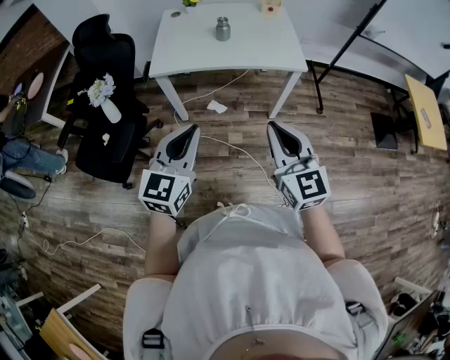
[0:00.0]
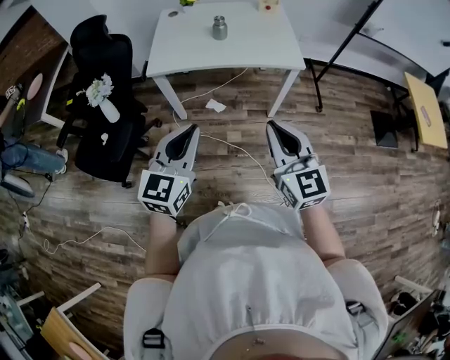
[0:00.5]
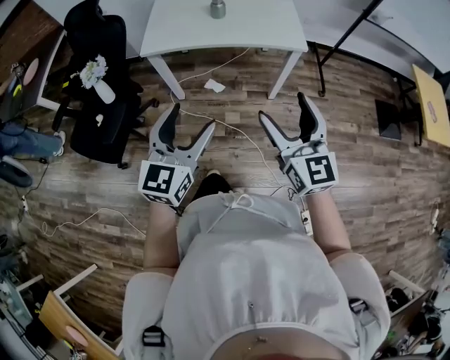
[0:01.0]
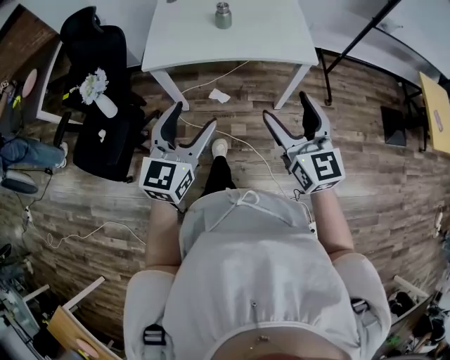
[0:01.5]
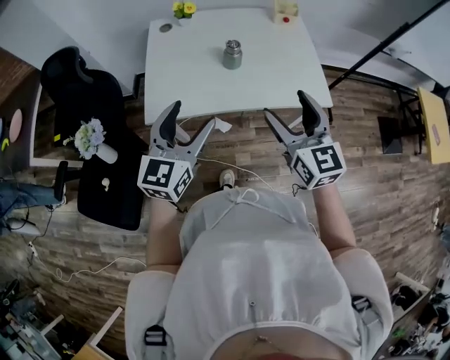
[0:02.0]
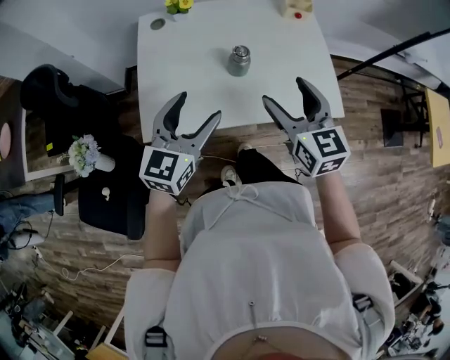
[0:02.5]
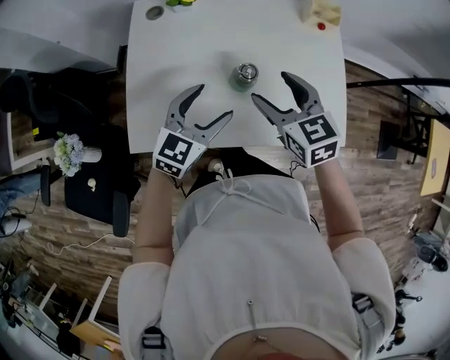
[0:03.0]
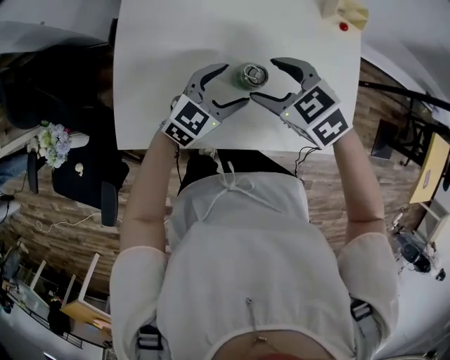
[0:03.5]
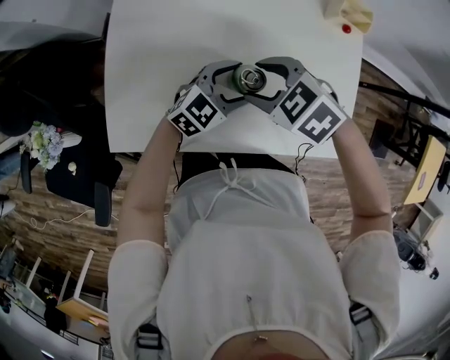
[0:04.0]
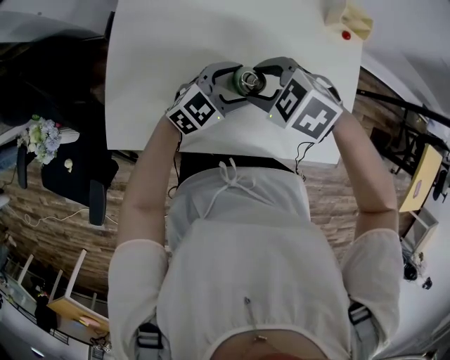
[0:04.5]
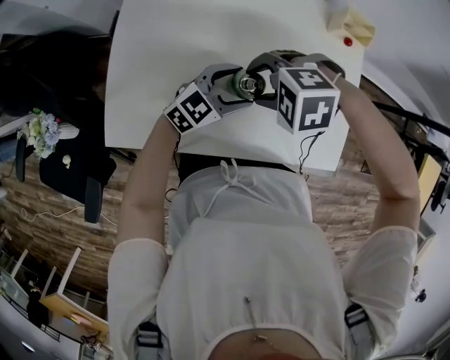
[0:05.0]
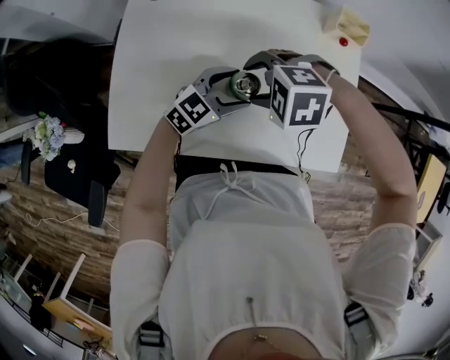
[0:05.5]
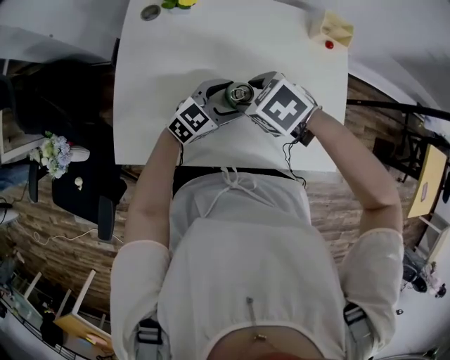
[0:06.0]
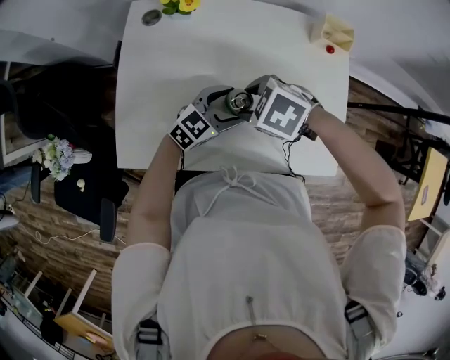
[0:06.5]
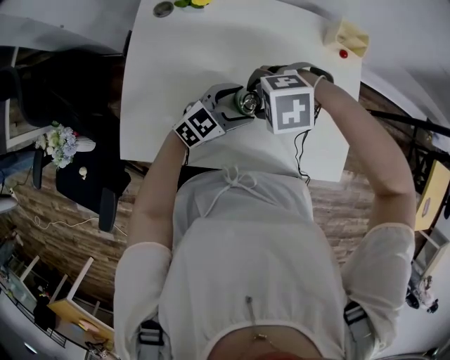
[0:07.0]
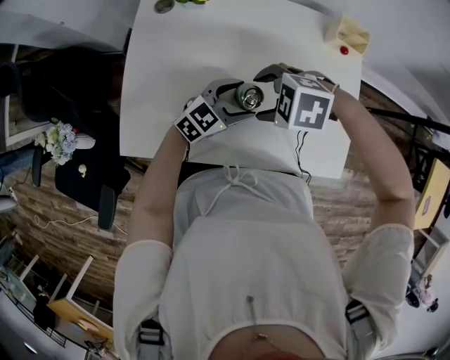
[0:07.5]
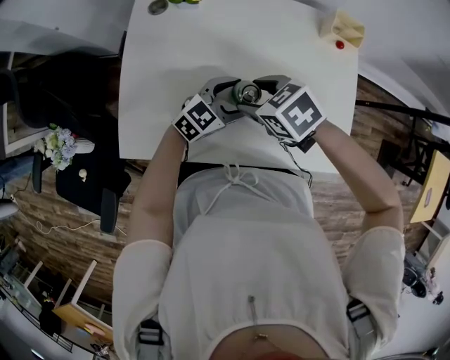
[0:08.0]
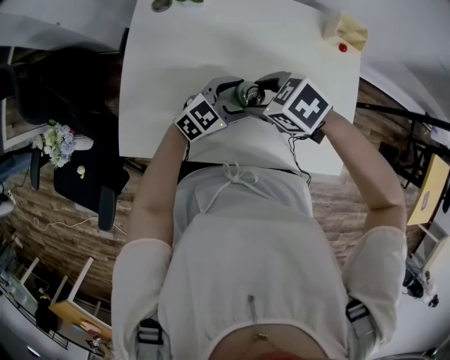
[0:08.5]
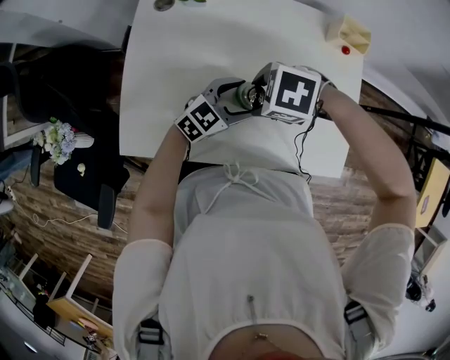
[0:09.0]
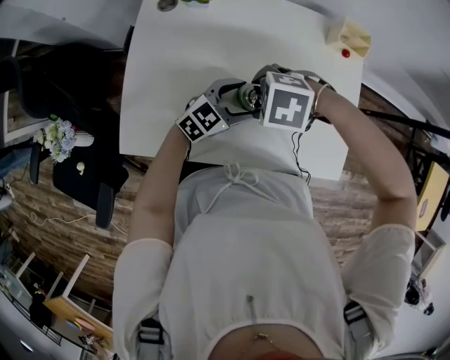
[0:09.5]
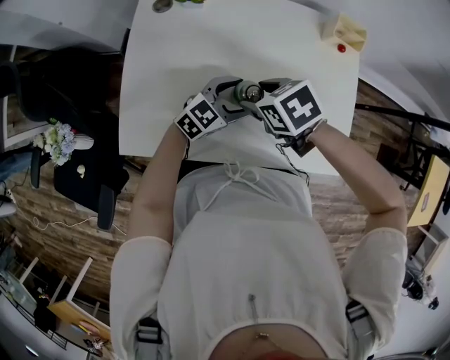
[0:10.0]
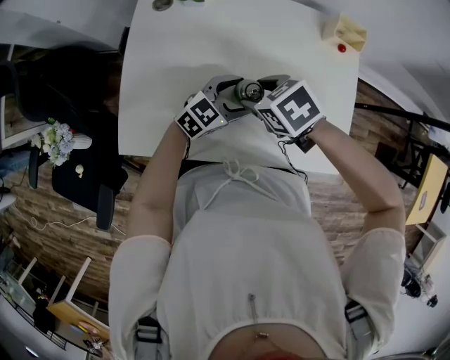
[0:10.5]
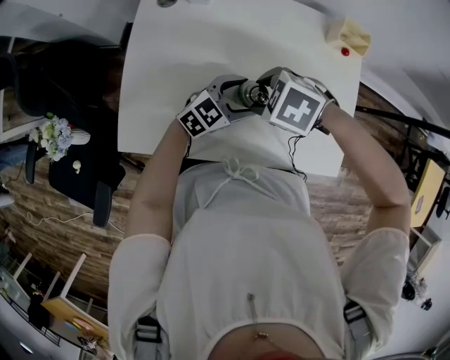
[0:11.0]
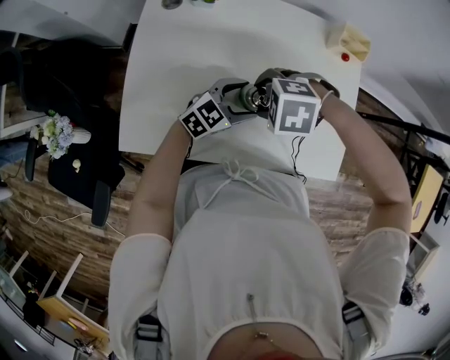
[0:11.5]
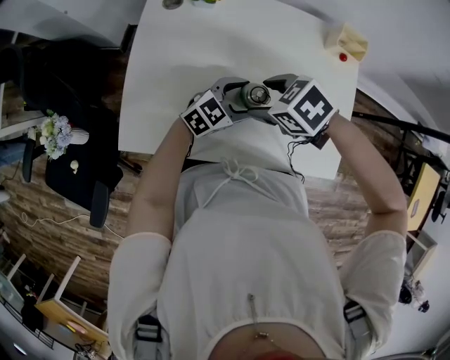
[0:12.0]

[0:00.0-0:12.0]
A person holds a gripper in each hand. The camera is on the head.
0:00.0 to 0:02.0: The two grippers go about 35 cm forward. The right gripper opens its fingers. The left gripper opens up.
0:02.0 to 0:04.0: The right gripper ends up roughly 40 cm from where it was, and tilts its fingers approximately 50 degrees downward. The left gripper moves about 40 cm, and rotates approximately 30 degrees.

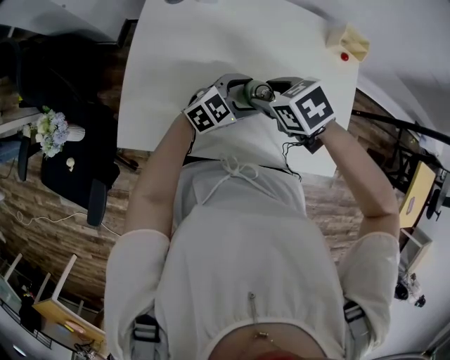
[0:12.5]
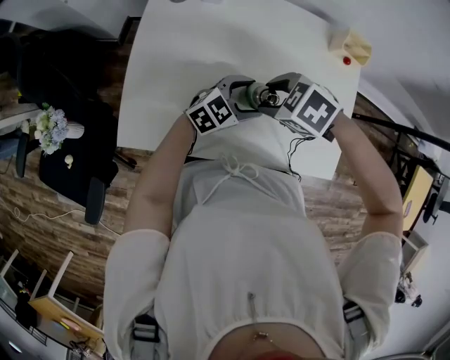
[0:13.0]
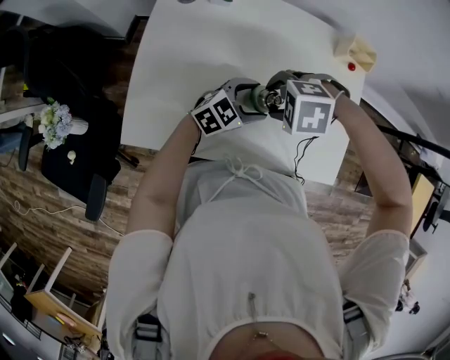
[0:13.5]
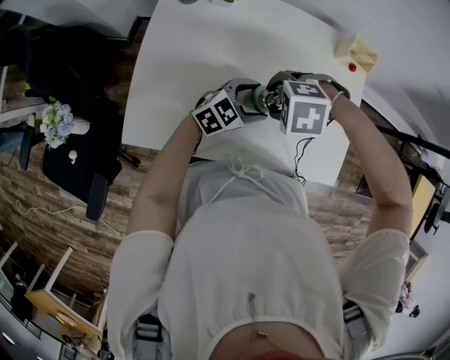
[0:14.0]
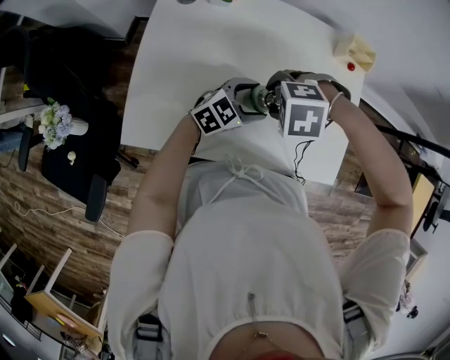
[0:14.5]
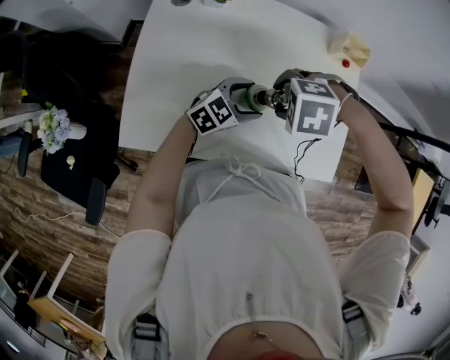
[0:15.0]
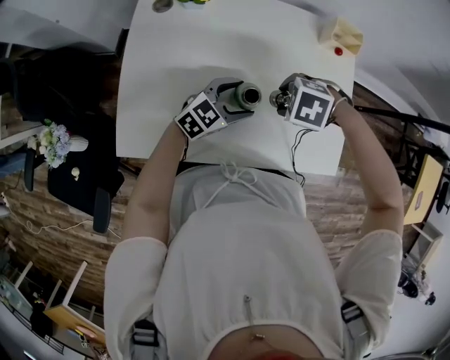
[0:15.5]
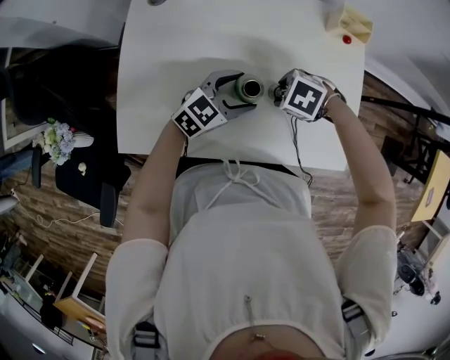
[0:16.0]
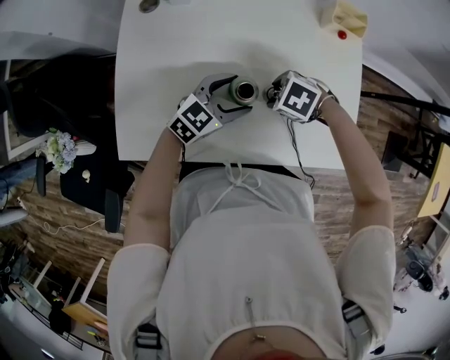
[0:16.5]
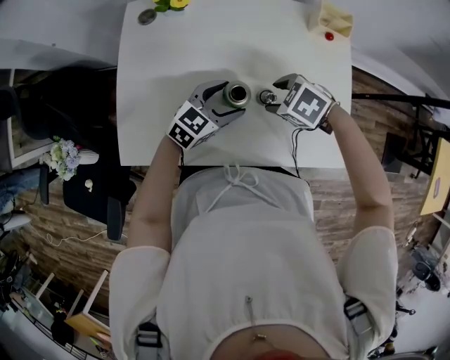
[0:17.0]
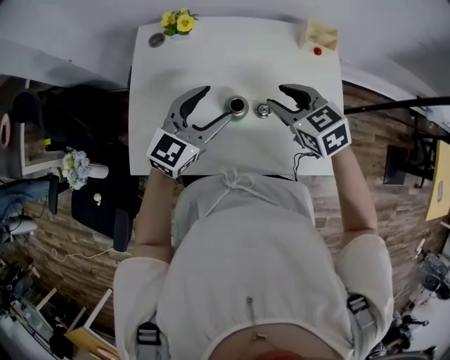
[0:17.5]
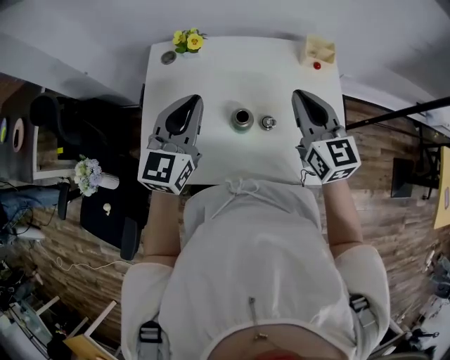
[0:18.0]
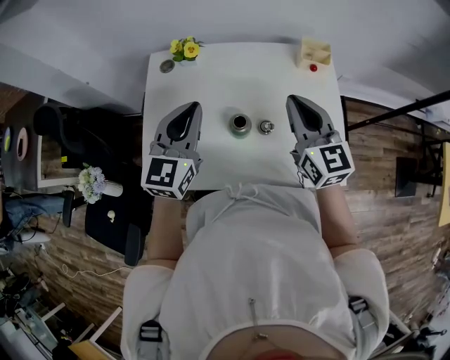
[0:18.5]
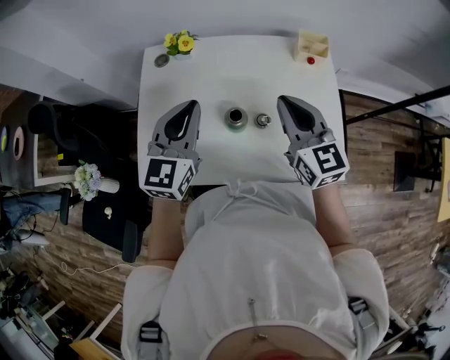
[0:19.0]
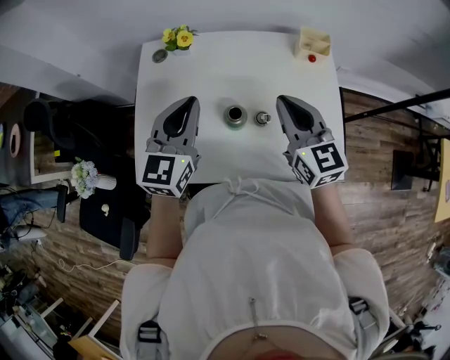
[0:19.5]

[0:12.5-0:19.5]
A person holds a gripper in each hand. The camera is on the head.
0:12.5 to 0:14.5: The right gripper rolls counterclockwise, seen from behind, by approximately 50 degrees.
0:14.5 to 0:16.0: The right gripper ends up about 15 cm from where it was, and swivels some 30 degrees.
0:16.0 to 0:17.5: Both grippers travel together upward, some 15 cm. The right gripper tips its fingers upward by roughly 40 degrees. The left gripper turns by approximately 20 degrees.
0:17.5 to 0:19.5: The grippers both shift upward by approximately 10 cm. The right gripper swivels some 30 degrees, and closes up. The left gripper turns by approximately 20 degrees, and closes.

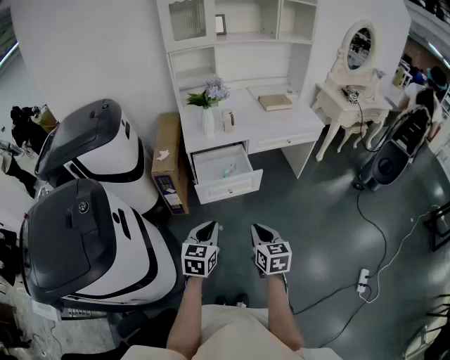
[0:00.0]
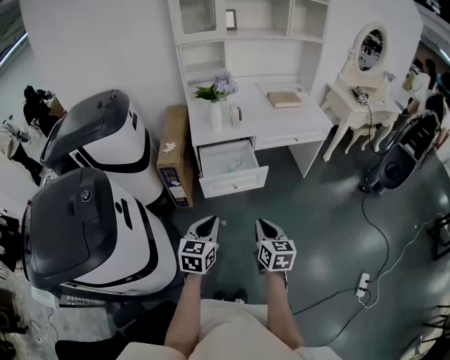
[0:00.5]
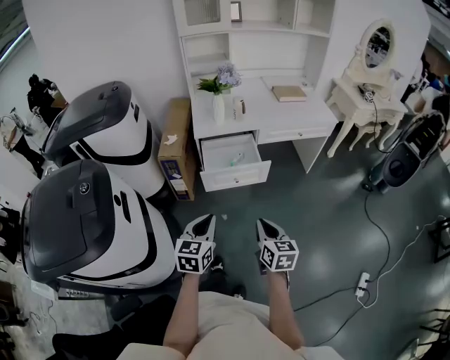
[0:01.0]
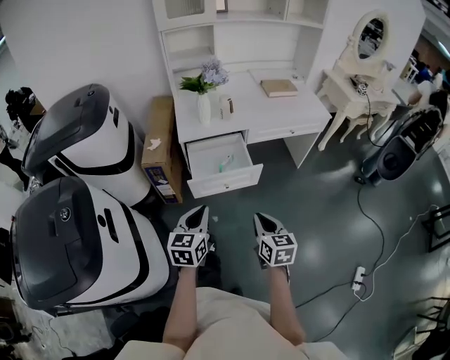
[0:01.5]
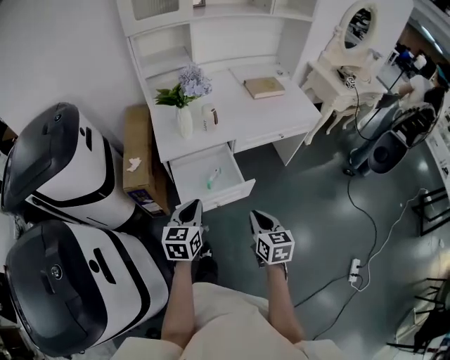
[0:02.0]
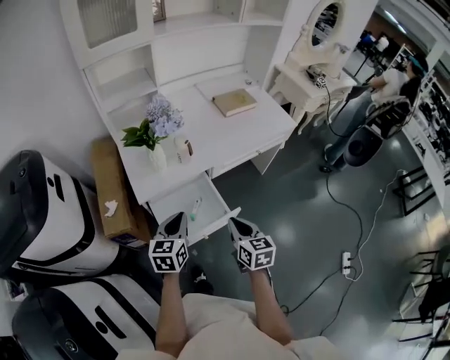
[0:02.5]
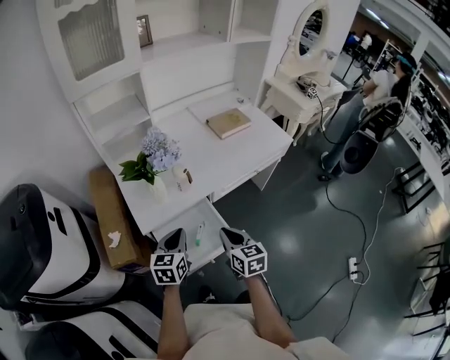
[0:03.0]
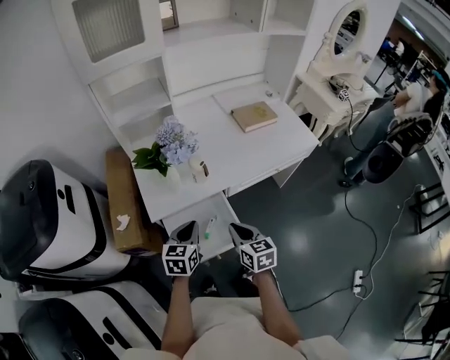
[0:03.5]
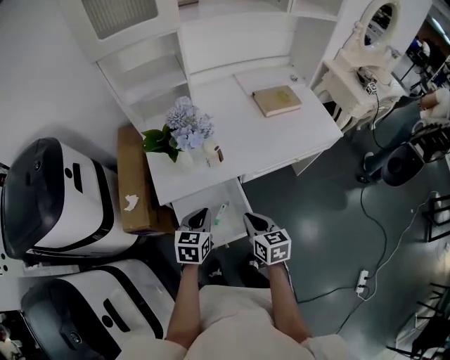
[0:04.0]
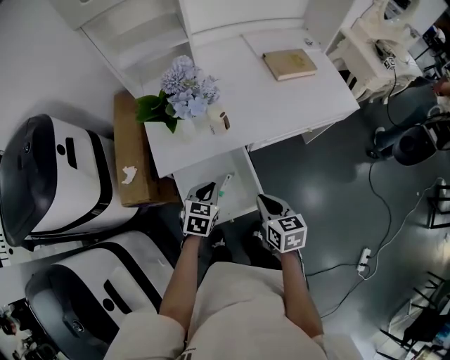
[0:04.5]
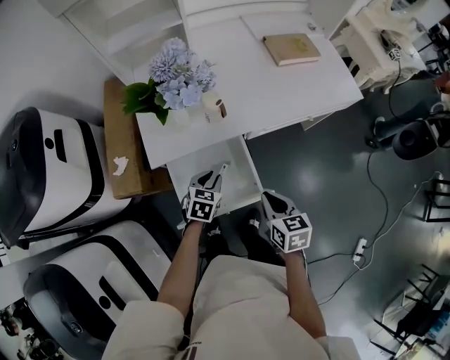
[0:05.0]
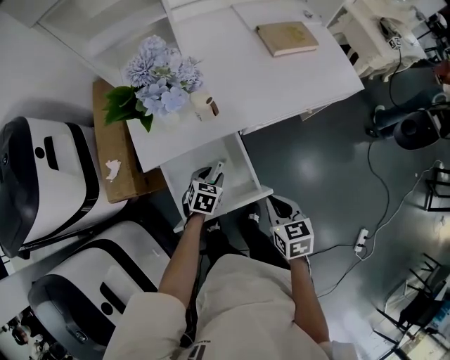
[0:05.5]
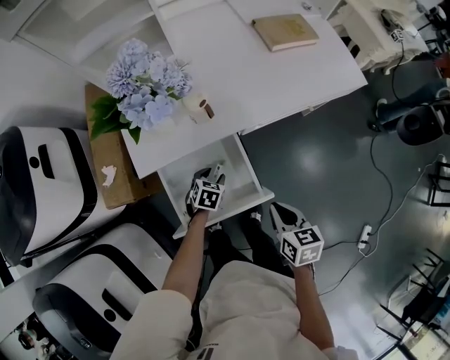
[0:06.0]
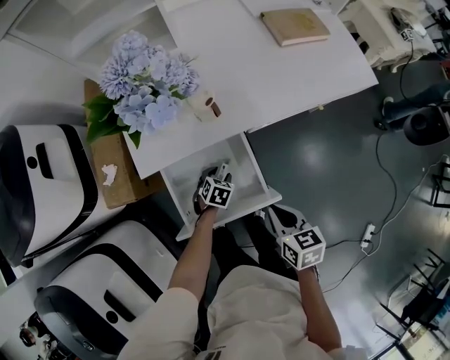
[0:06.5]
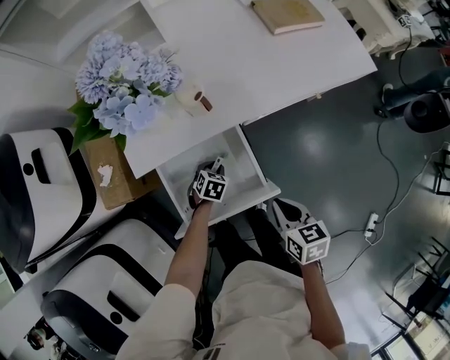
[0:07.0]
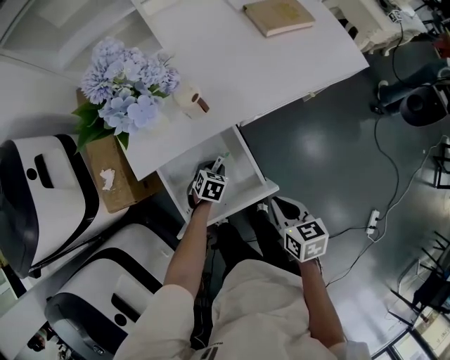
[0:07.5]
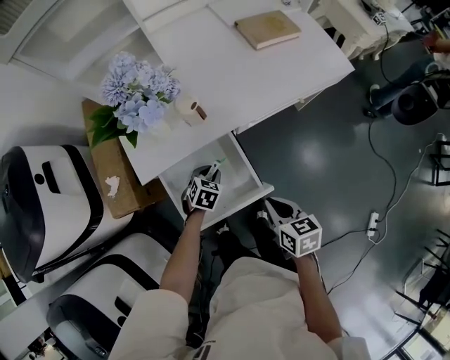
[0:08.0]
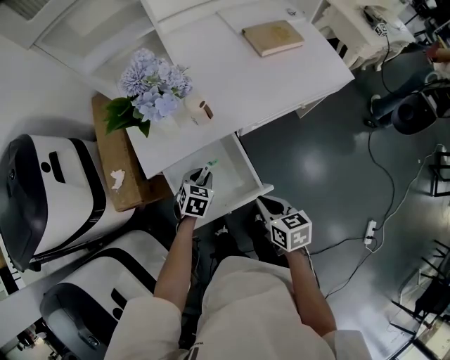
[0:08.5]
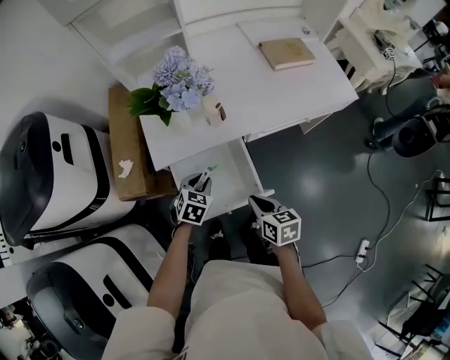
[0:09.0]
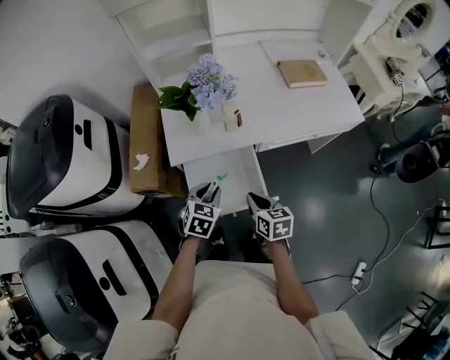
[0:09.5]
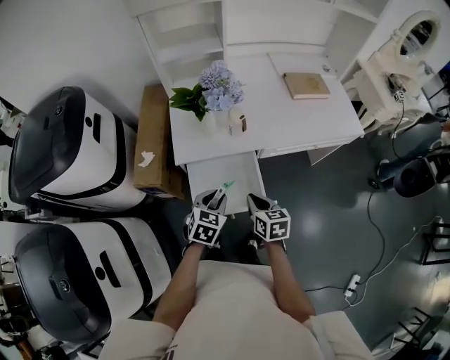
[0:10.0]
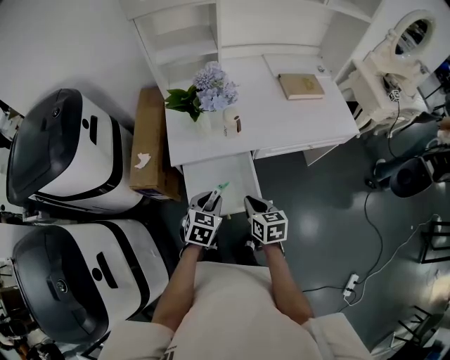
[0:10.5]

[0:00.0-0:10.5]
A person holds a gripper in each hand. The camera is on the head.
0:00.0 to 0:02.0: Both grippers travel together forward, approximately 25 cm.
0:02.0 to 0:04.0: The two grippers go about 25 cm forward.
0:04.0 to 0:06.5: The right gripper goes approximately 10 cm downward and to the right, while the left gripper shifts some 30 cm downward, tilts its fingers some 30 degrees downward, and opens up.
0:06.5 to 0:08.5: The left gripper heads upward, covering some 15 cm, and closes its fingers.
0:08.5 to 0:10.5: The left gripper heads upward and backward, covering roughly 20 cm. Meanwhile the right gripper travels to the left by about 5 cm.
